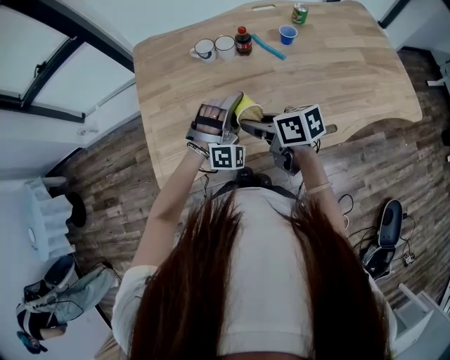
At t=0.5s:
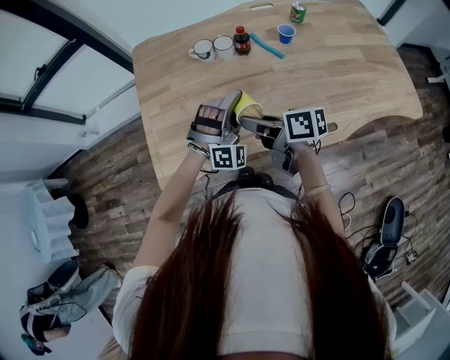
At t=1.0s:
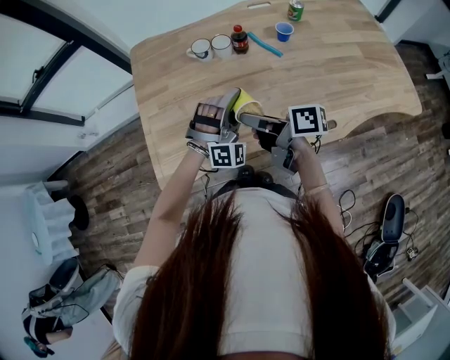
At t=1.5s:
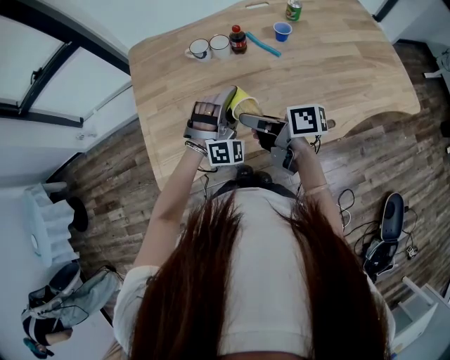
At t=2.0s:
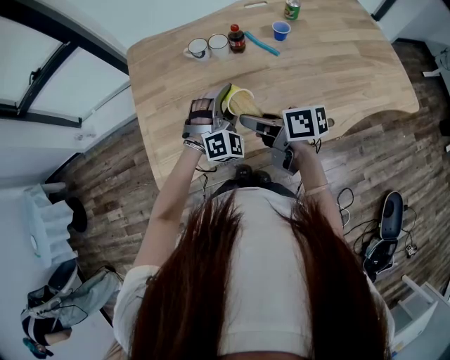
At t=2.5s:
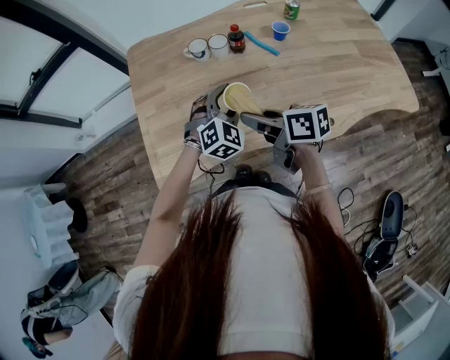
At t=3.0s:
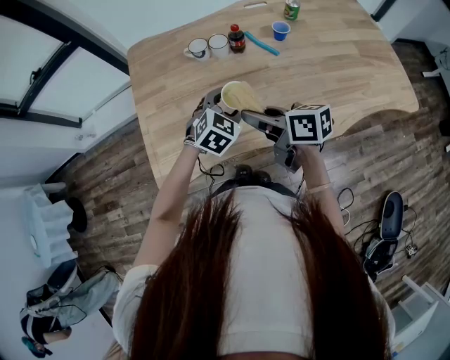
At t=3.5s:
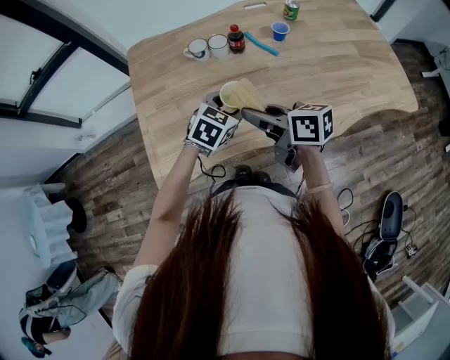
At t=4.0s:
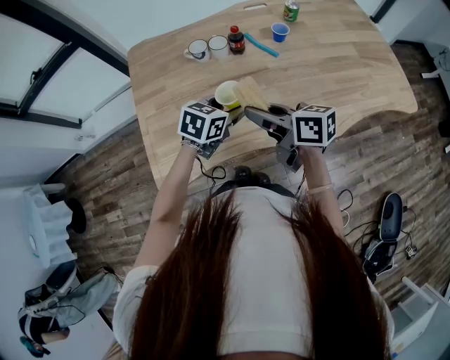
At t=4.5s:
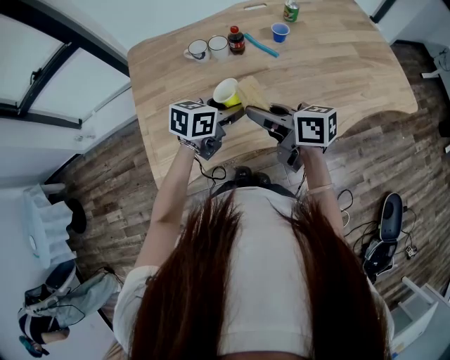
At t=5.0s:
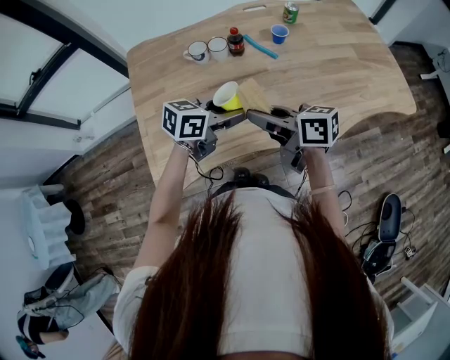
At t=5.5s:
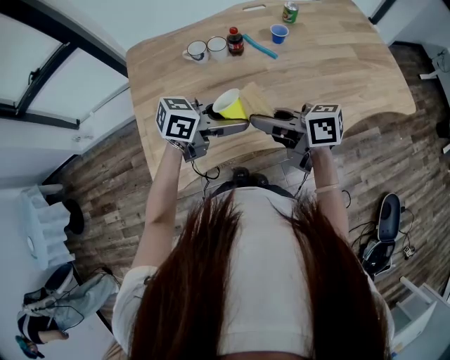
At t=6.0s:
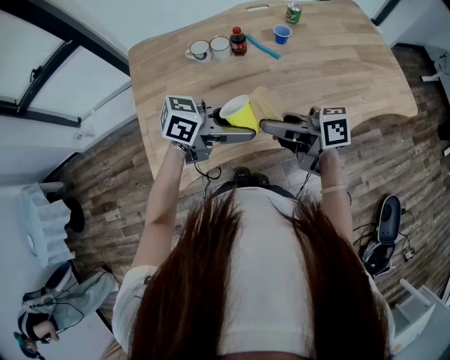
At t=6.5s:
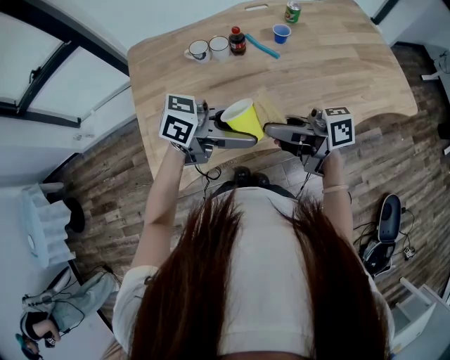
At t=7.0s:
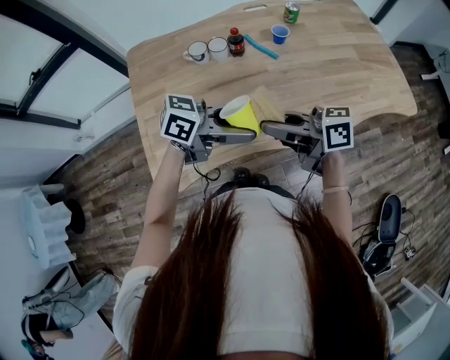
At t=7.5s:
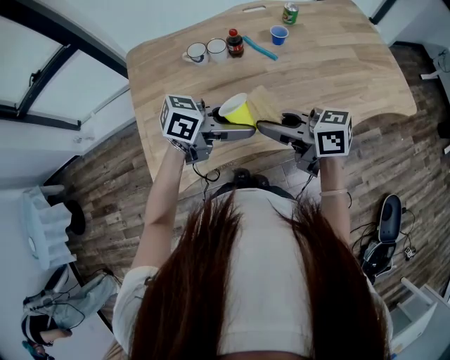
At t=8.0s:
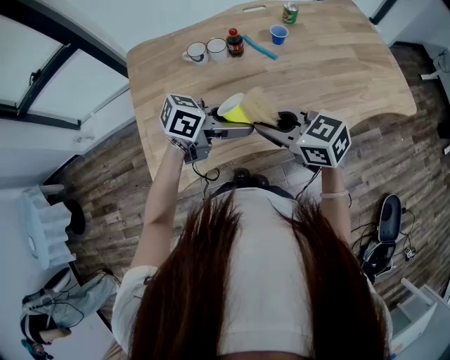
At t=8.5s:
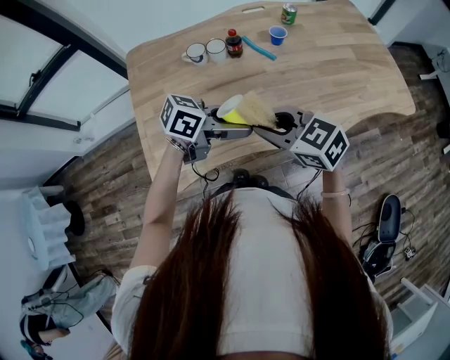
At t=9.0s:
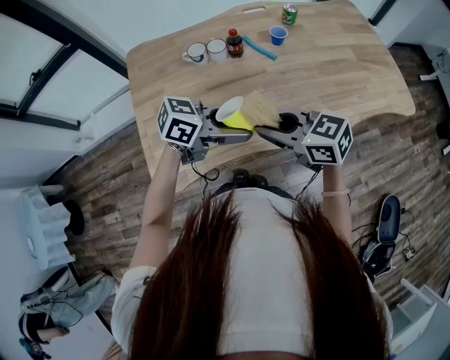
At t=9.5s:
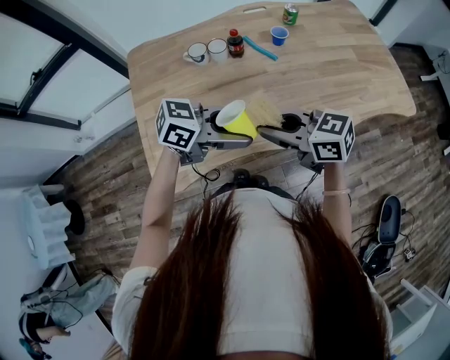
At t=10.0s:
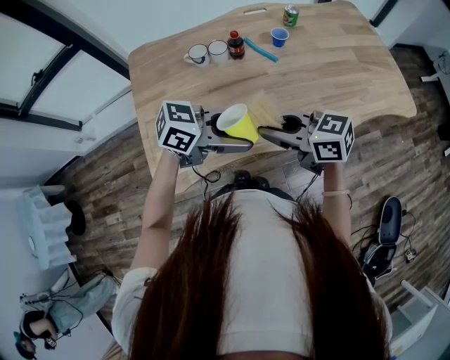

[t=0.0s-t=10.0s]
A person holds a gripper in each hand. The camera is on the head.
t=2.0s to t=4.0s: The left gripper rotates around the line of its fingers by approximately 60 degrees, counterclockwise from behind.
t=4.0s to t=6.0s: The left gripper ends up roughly 15 cm from where it was, and changes its angle by some 50 degrees. The right gripper swivels approximately 20 degrees.
t=6.0s to t=8.0s: The right gripper rotates some 40 degrees.
t=8.0s to t=10.0s: There are only small adjustments of the grippers.

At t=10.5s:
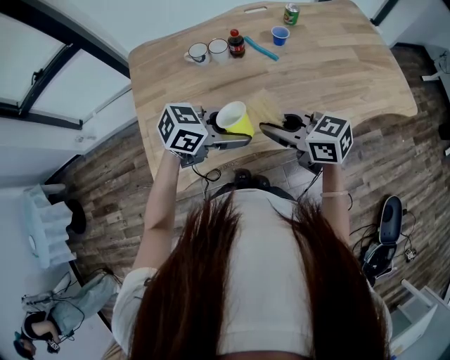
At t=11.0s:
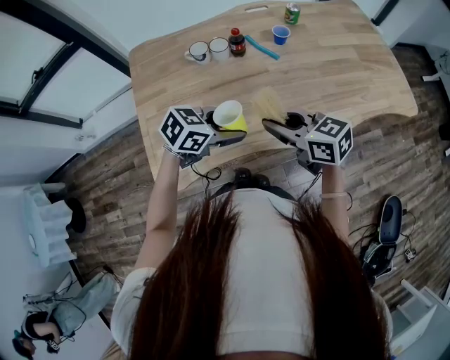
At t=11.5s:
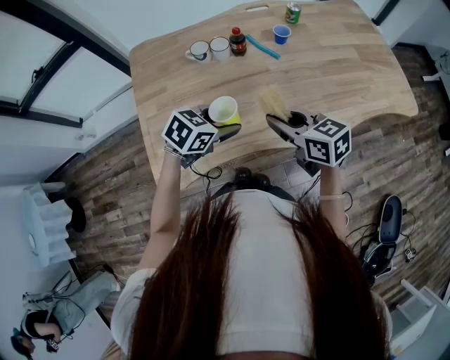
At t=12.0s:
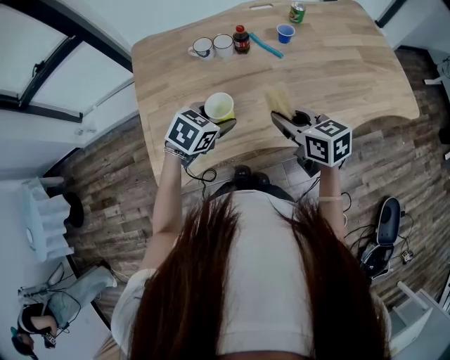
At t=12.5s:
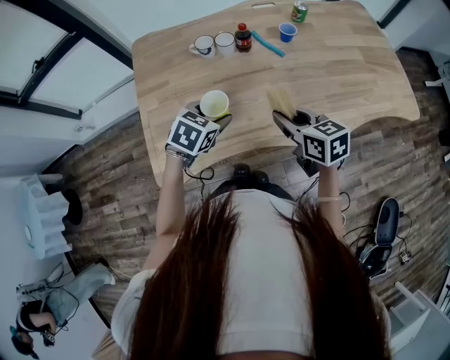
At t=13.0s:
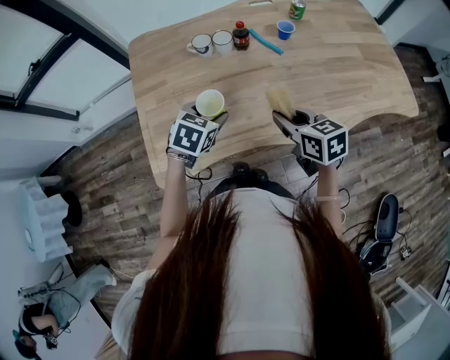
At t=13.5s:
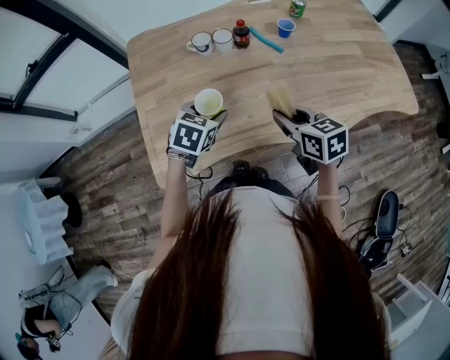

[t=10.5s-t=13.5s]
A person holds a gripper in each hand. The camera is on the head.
t=10.5s to t=12.0s: The left gripper shifts by roughly 10 cm, and changes its angle by approximately 40 degrees. The right gripper moves roughly 5 cm.
t=12.0s to t=13.5s: The left gripper ends up roughly 5 cm from where it was.

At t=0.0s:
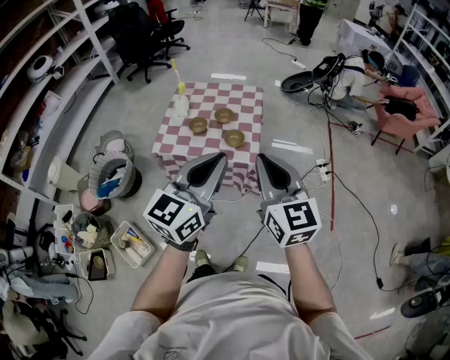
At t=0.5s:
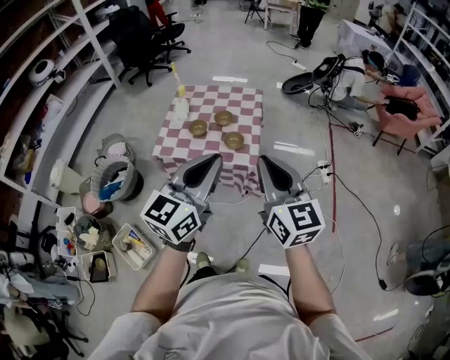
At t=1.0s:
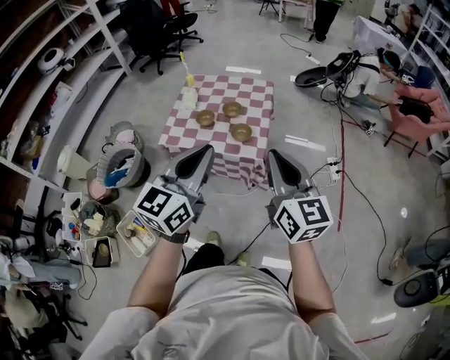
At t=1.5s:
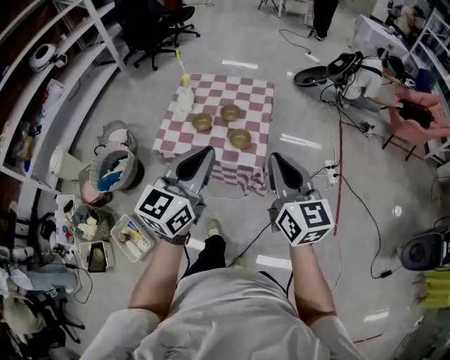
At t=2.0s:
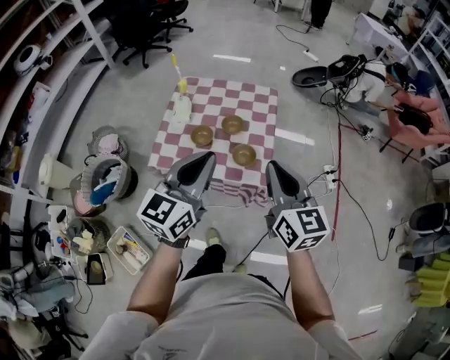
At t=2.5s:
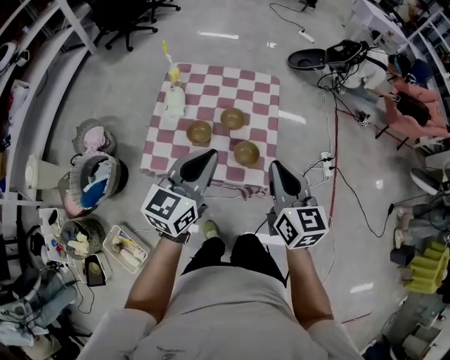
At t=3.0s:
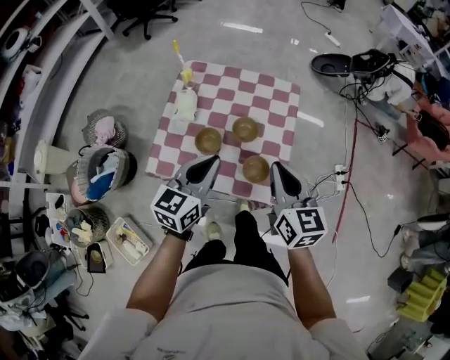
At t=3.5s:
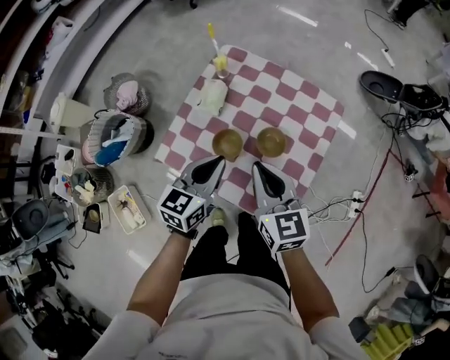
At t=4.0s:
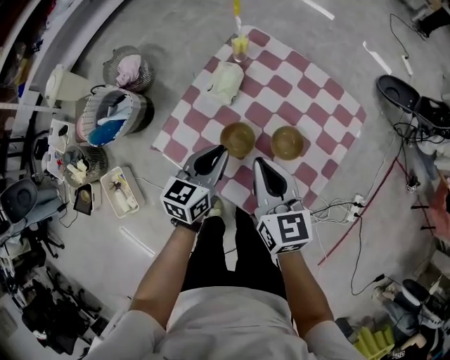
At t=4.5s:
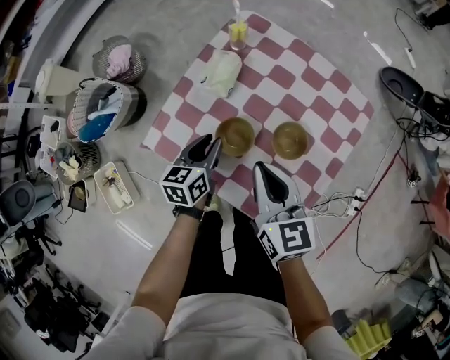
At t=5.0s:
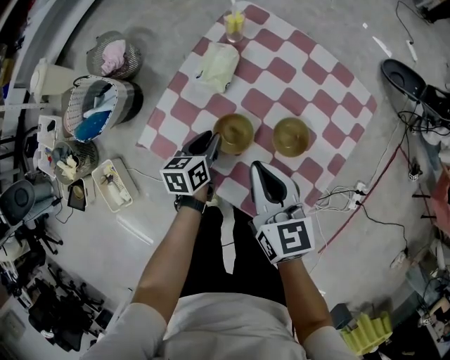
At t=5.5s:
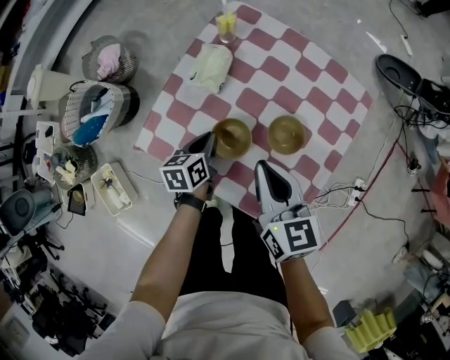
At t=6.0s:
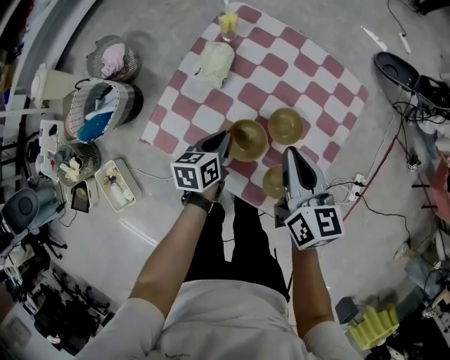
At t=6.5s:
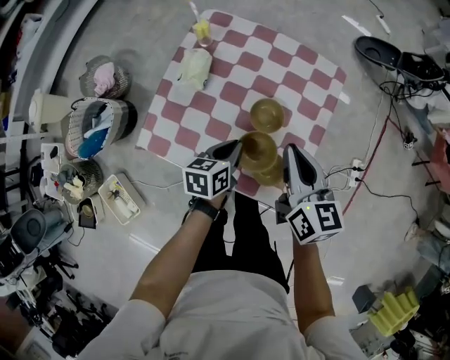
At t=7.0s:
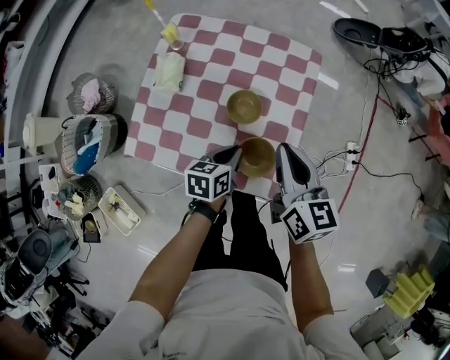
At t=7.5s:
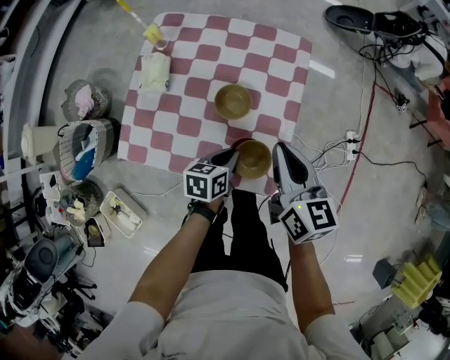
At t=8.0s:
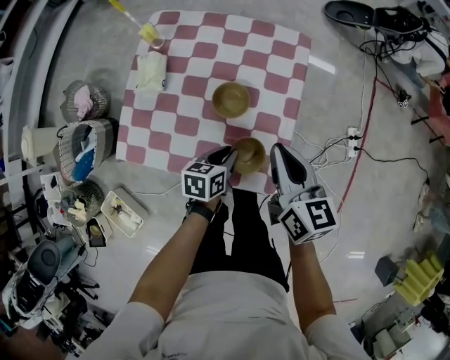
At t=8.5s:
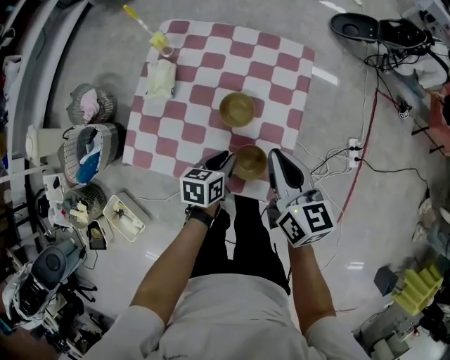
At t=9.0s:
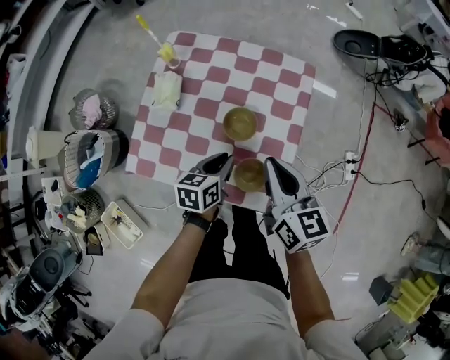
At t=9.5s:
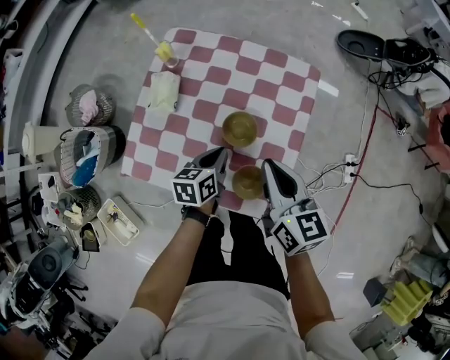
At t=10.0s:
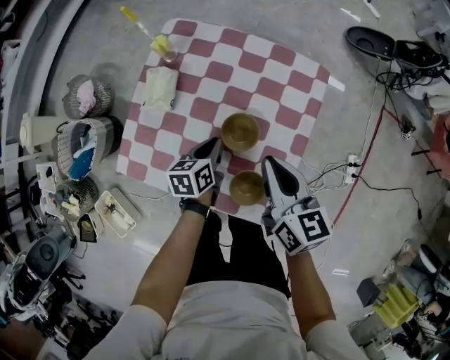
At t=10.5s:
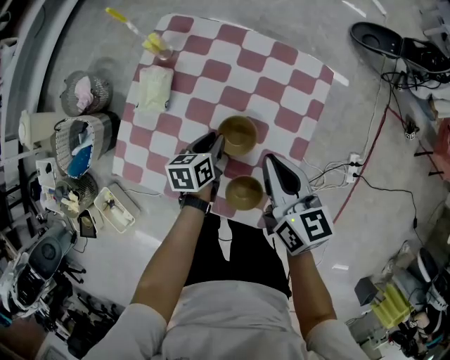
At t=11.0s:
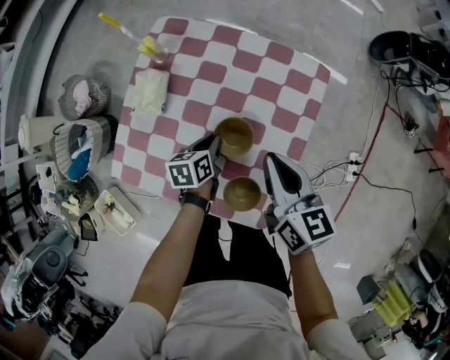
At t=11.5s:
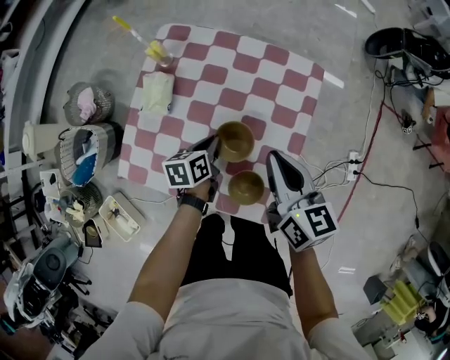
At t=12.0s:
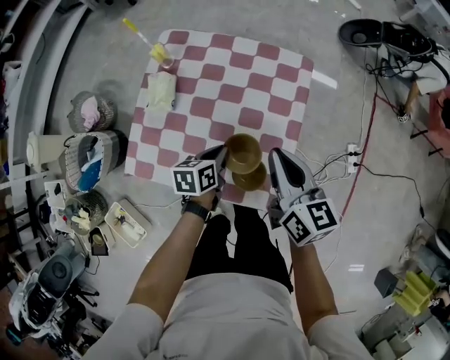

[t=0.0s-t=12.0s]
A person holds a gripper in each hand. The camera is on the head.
t=0.0s to t=2.0s: The right gripper heads forward, covering about 20 cm. Meanwhile the left gripper travels forward and to the left by approximately 20 cm.
t=2.0s to t=4.0s: The right gripper moves approximately 40 cm, and rotates approximately 30 degrees. Meanwhile the left gripper moves downward, about 30 cm, and swivels roughly 40 degrees.
t=4.0s to t=6.0s: The left gripper goes approximately 10 cm downward, and swivels about 20 degrees. Meanwhile the right gripper is displaced to the right by roughly 5 cm.
t=6.0s to t=8.0s: Both grippers travel together to the right, roughly 15 cm. The left gripper swivels some 30 degrees.
t=8.0s to t=10.0s: The right gripper goes about 10 cm forward and to the left, while the left gripper heads forward and to the left, covering roughly 15 cm.
t=10.0s to t=12.0s: The left gripper is displaced backward by roughly 5 cm. The right gripper moves some 5 cm.

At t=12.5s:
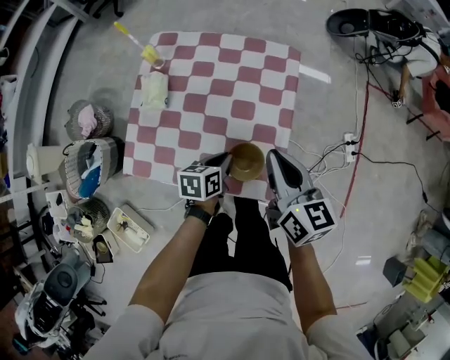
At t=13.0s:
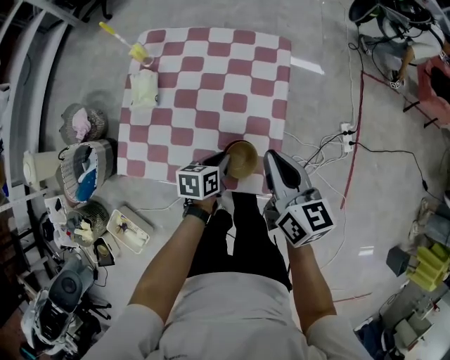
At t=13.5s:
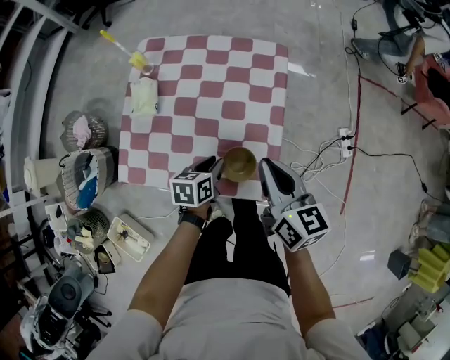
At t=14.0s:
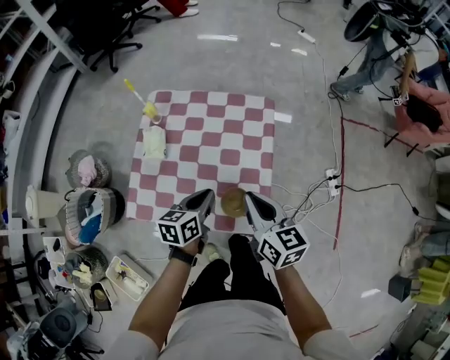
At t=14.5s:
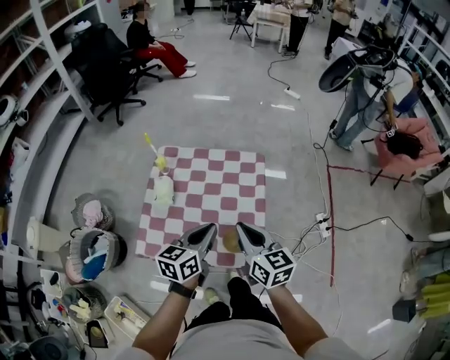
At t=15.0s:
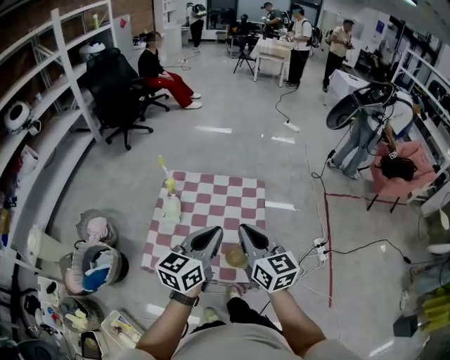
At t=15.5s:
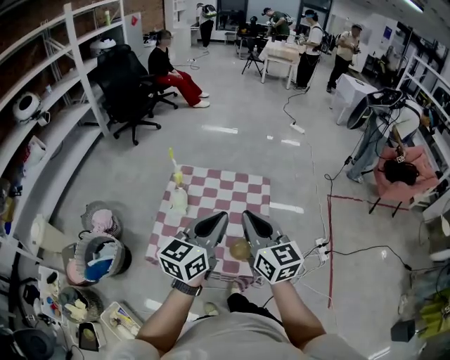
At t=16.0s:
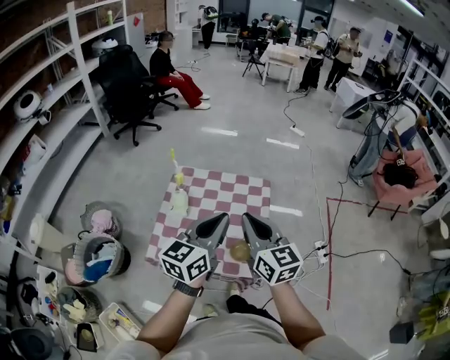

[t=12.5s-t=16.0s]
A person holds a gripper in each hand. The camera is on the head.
t=12.5s to t=14.5s: The left gripper shifts some 25 cm upward, and swivels some 30 degrees; the right gripper travels upward, backward and to the left by approximately 10 cm.
t=14.5s to t=16.0s: Both grippers move upward, some 15 cm. The left gripper turns by some 20 degrees.
